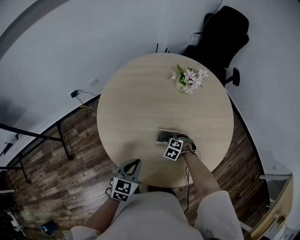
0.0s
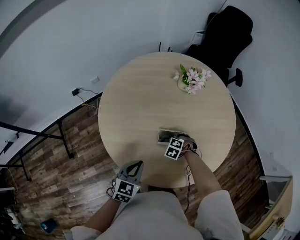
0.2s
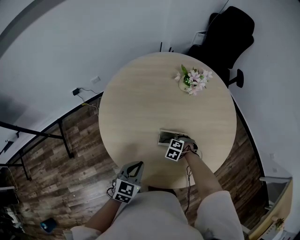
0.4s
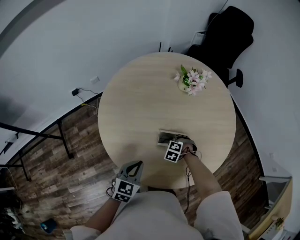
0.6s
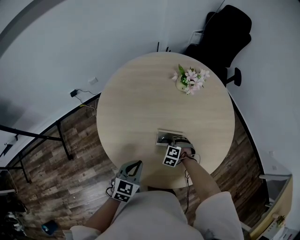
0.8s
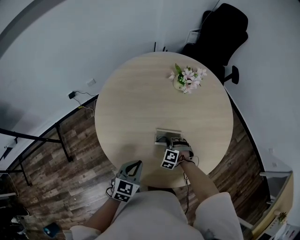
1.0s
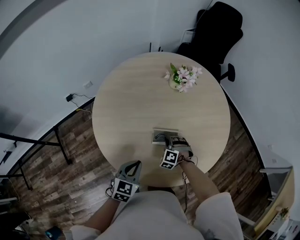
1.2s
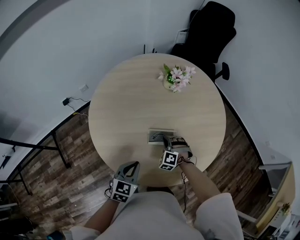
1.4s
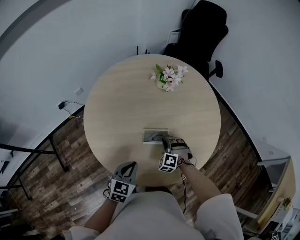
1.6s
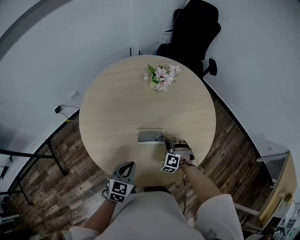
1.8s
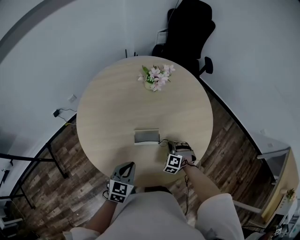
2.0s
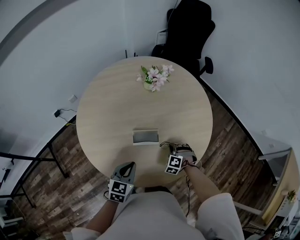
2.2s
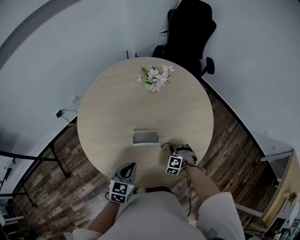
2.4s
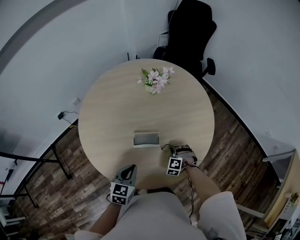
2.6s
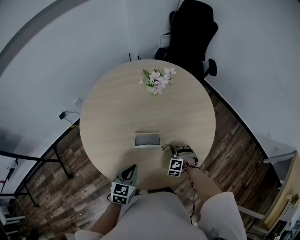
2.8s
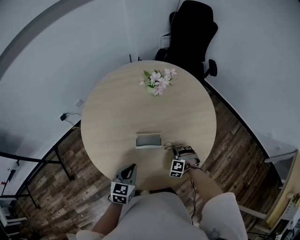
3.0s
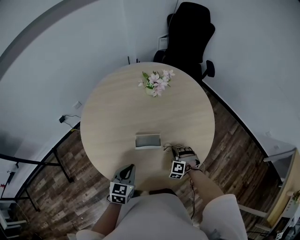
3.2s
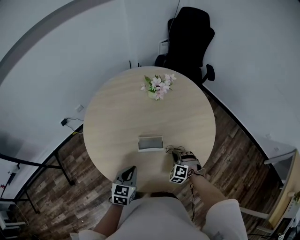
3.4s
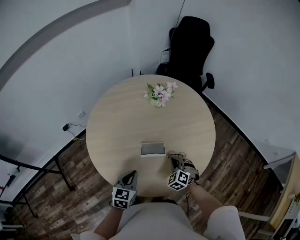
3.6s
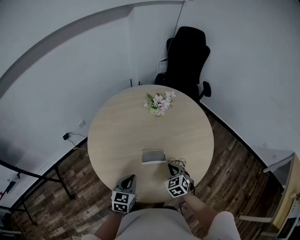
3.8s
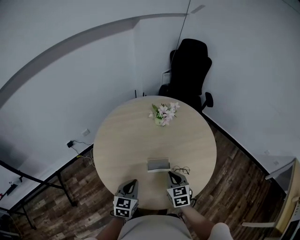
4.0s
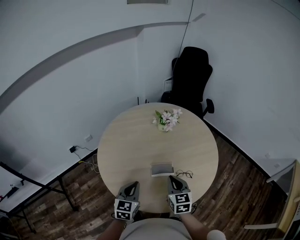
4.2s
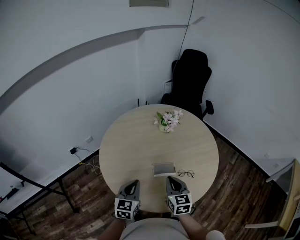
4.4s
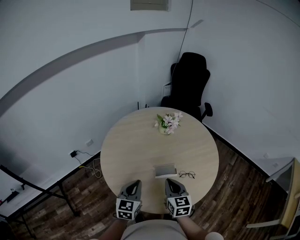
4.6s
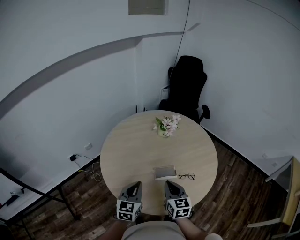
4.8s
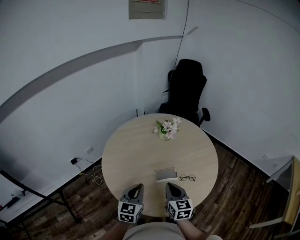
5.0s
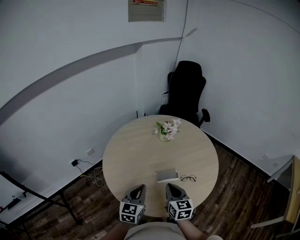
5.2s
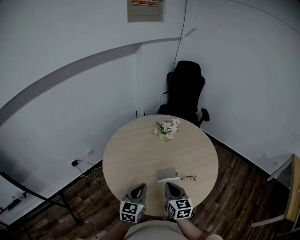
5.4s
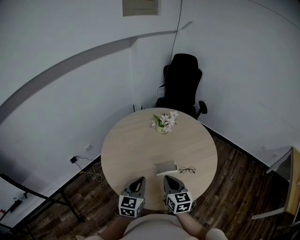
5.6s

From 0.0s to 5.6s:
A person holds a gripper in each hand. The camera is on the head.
From 0.0s to 1.4s: The right gripper changes place by some 5 cm, and changes its angle by roughly 20 degrees.
From 1.4s to 2.8s: The left gripper moves to the right, about 5 cm; the right gripper heads to the right, covering roughly 15 cm.
From 2.8s to 4.2s: The right gripper moves upward and to the left, about 30 cm, and twists approximately 80 degrees clockwise, seen from behind. Meanwhile the left gripper shifts roughly 15 cm upward and to the left.
From 4.2s to 5.6s: The left gripper heads upward, covering approximately 5 cm, while the right gripper travels to the left by approximately 5 cm.

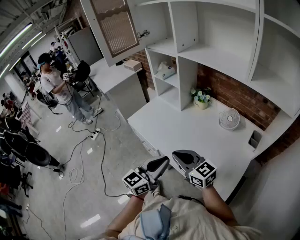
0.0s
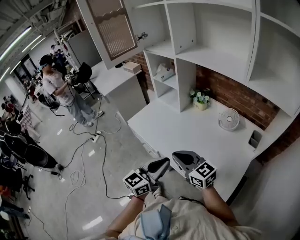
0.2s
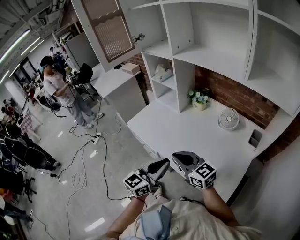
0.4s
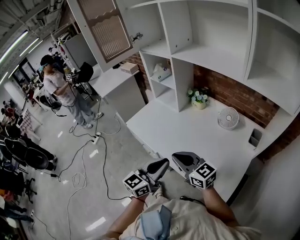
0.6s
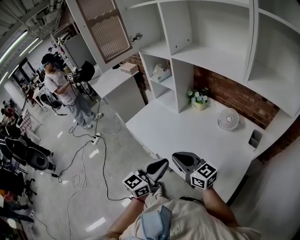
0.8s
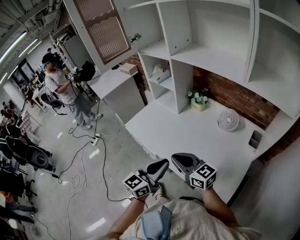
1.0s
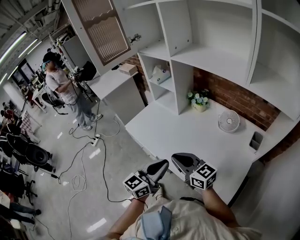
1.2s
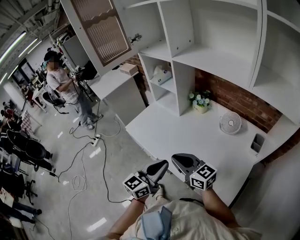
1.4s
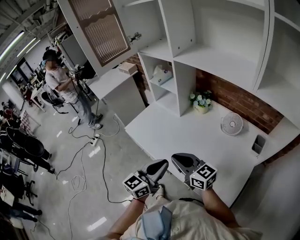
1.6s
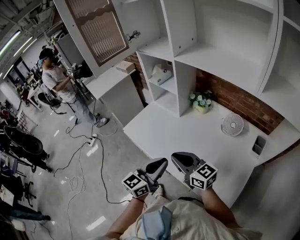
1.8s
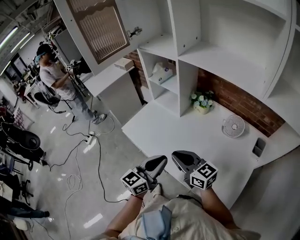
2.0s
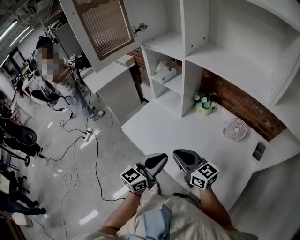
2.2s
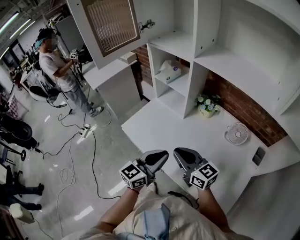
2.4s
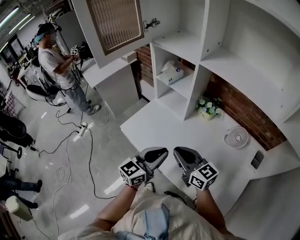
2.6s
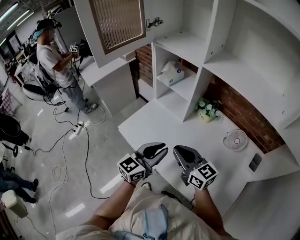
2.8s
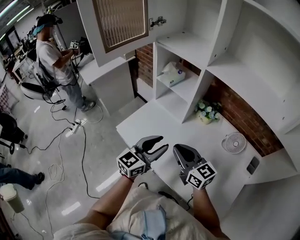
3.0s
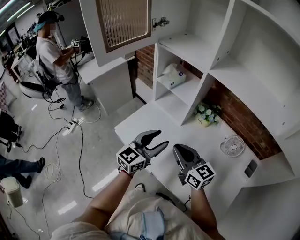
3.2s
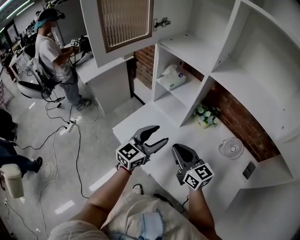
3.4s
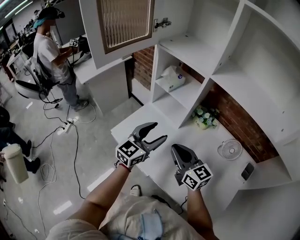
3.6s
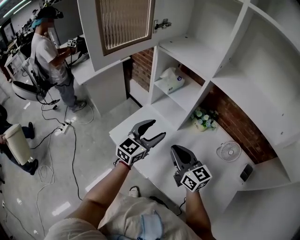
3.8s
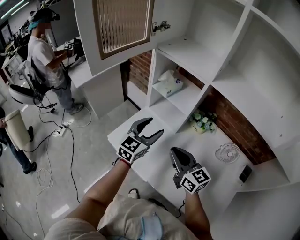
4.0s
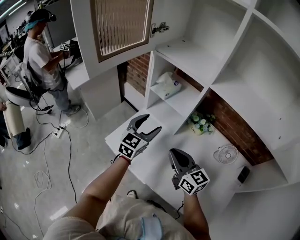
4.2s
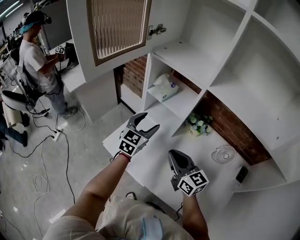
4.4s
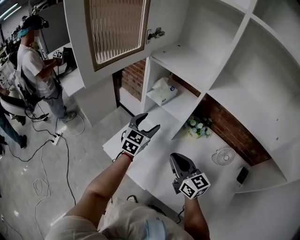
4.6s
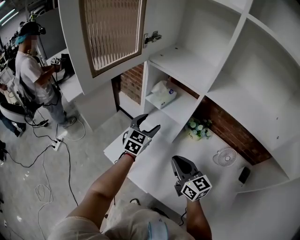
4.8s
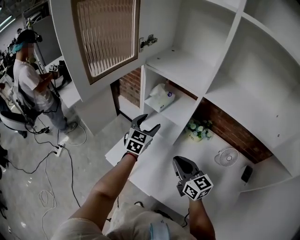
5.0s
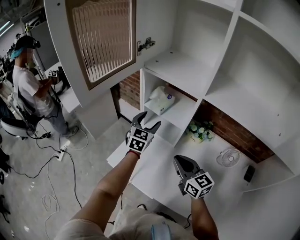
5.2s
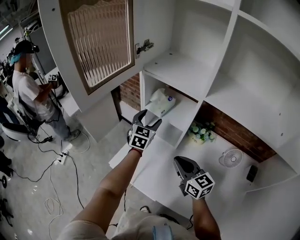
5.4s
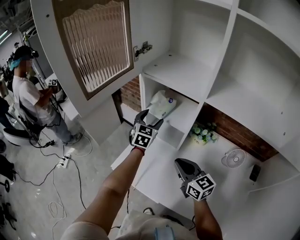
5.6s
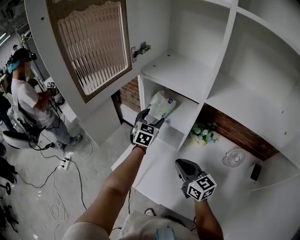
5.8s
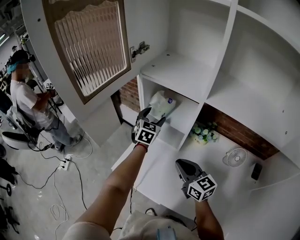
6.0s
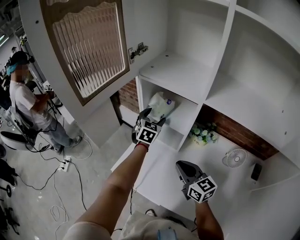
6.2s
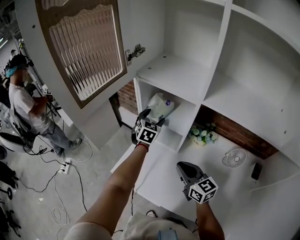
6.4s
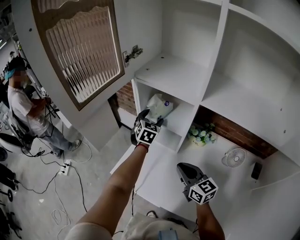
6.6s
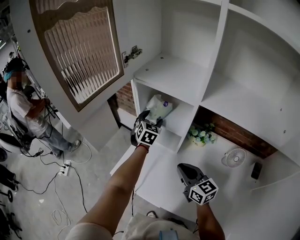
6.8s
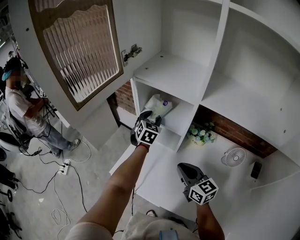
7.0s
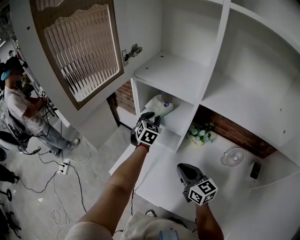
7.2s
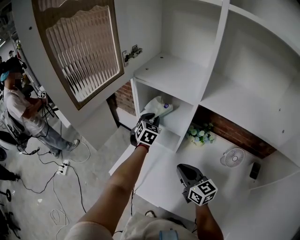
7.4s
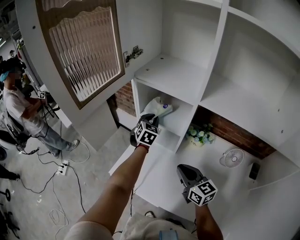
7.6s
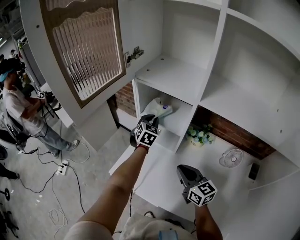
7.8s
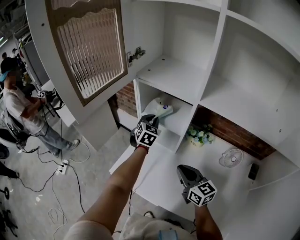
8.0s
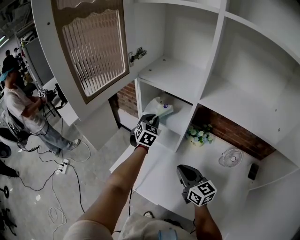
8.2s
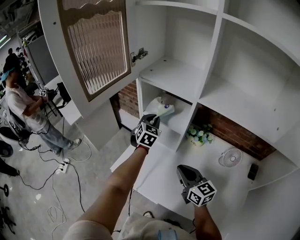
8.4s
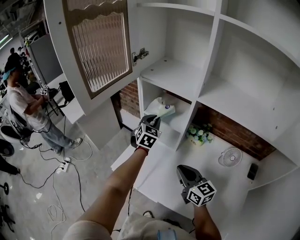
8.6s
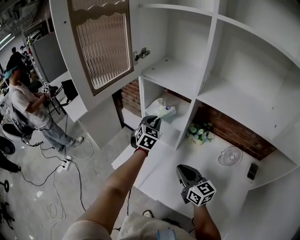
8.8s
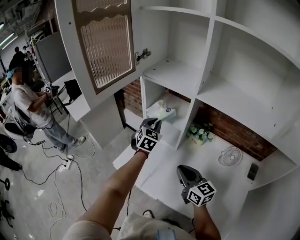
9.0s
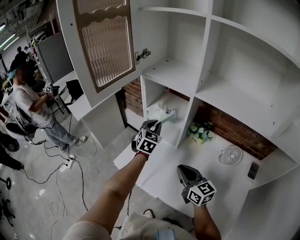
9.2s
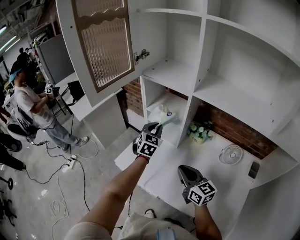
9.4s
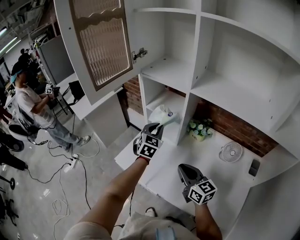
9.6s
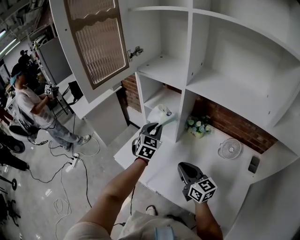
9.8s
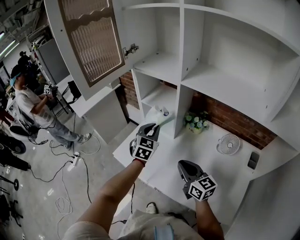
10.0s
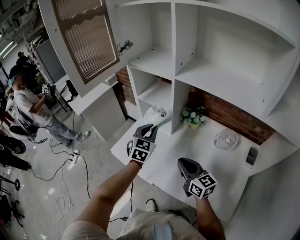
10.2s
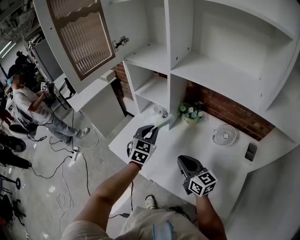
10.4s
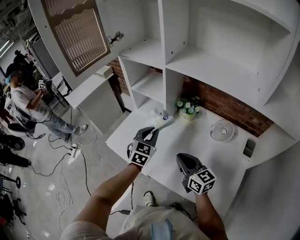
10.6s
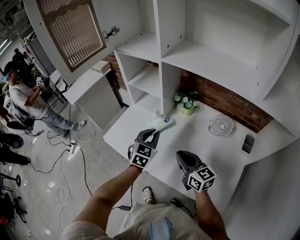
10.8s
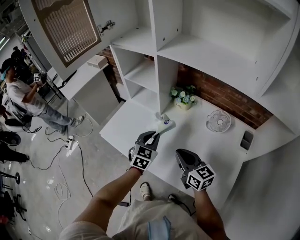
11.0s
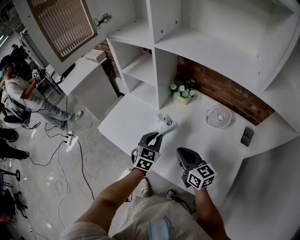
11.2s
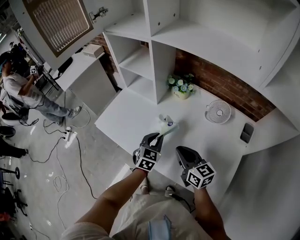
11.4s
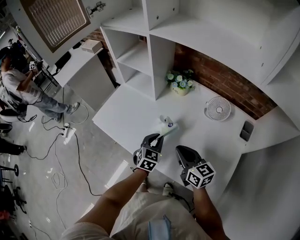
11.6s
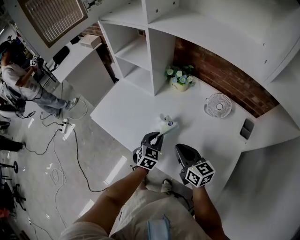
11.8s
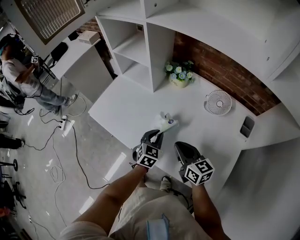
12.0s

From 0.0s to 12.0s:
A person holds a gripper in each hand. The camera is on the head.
From 0.0s to 1.6s: Both grippers travel together forward, about 5 cm.
From 1.6s to 3.0s: The right gripper heads forward, covering some 15 cm; the left gripper heads forward and to the left, covering approximately 20 cm, and opens.
From 3.0s to 4.4s: The left gripper is displaced forward by about 20 cm, turns by about 20 degrees, and opens its fingers, while the right gripper goes approximately 5 cm forward.
From 4.4s to 6.0s: The right gripper goes some 5 cm forward; the left gripper goes approximately 15 cm forward.
From 6.0s to 7.6s: The left gripper closes its fingers.
From 7.6s to 9.0s: The two grippers go approximately 10 cm backward.
From 9.0s to 10.4s: The left gripper is displaced backward by roughly 15 cm; the right gripper heads backward and to the right, covering approximately 10 cm.
From 10.4s to 12.0s: The left gripper is displaced downward, backward and to the right by some 25 cm. The right gripper is displaced downward and to the right by roughly 15 cm.

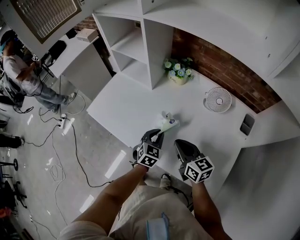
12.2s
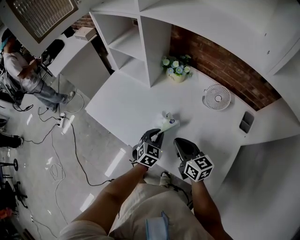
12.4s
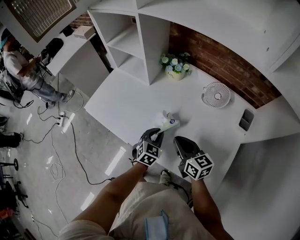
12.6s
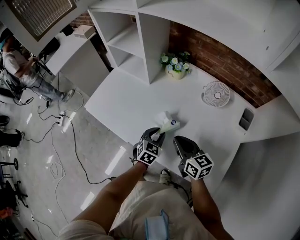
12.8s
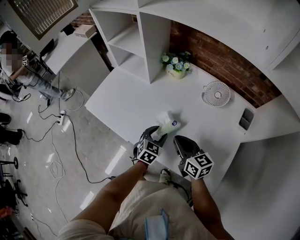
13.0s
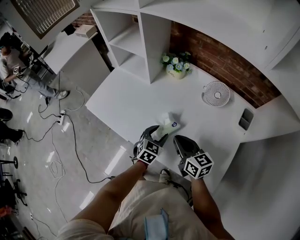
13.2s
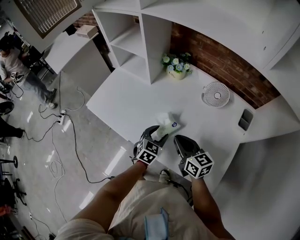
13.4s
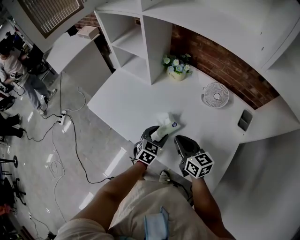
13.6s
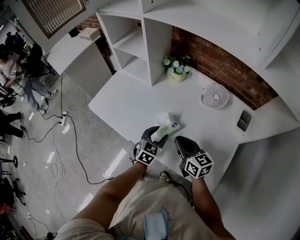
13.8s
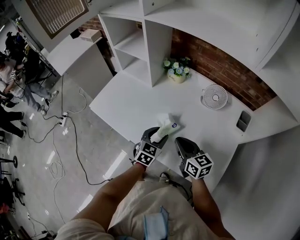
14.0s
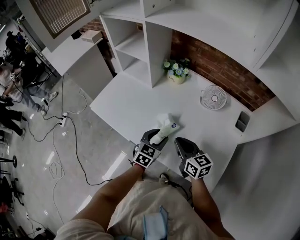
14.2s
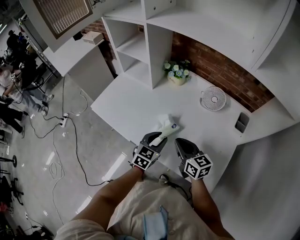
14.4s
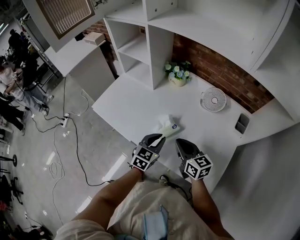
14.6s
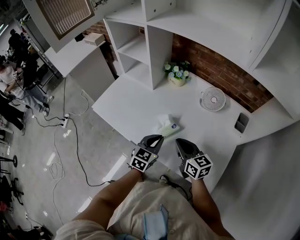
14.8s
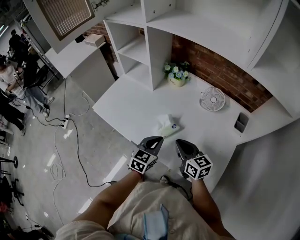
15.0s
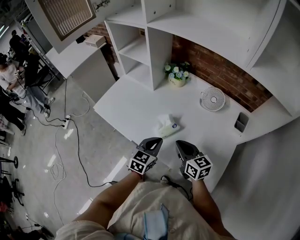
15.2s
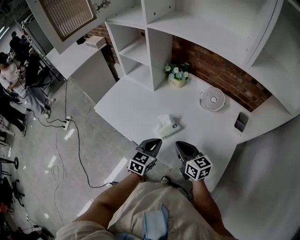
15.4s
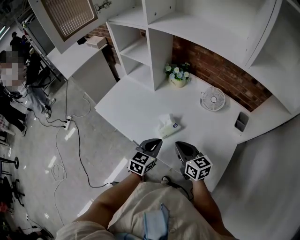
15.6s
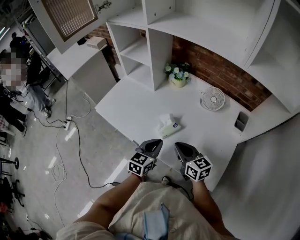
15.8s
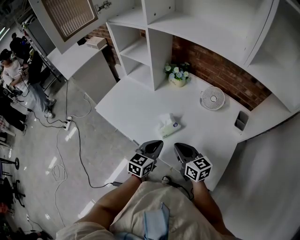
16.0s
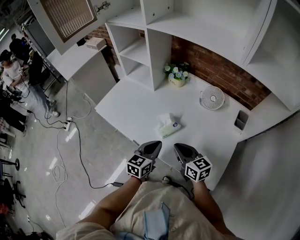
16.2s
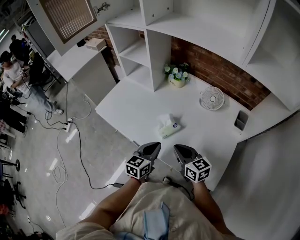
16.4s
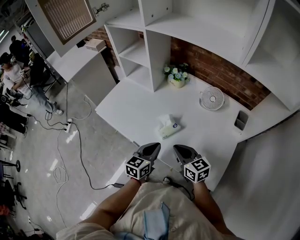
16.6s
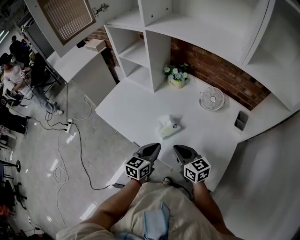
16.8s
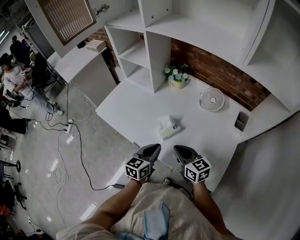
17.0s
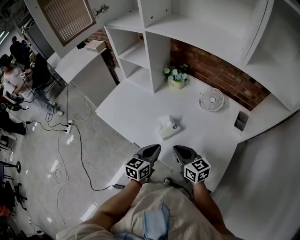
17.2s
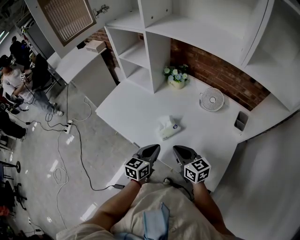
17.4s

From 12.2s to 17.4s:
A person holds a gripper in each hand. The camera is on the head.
From 12.2s to 14.0s: The left gripper ends up some 5 cm from where it was, and opens up.
From 14.0s to 15.6s: The left gripper shifts about 10 cm backward and upward, and closes.
From 15.6s to 17.4s: There are only small adjustments of the grippers.

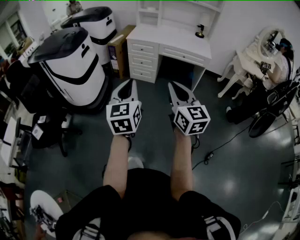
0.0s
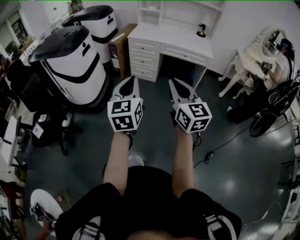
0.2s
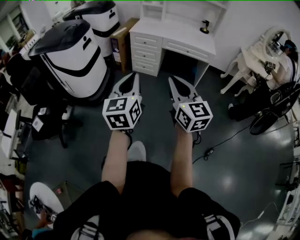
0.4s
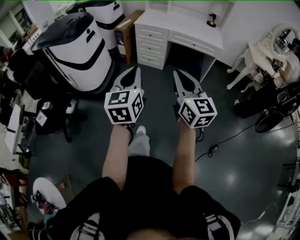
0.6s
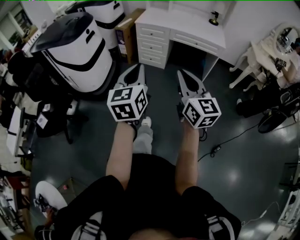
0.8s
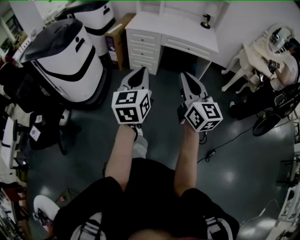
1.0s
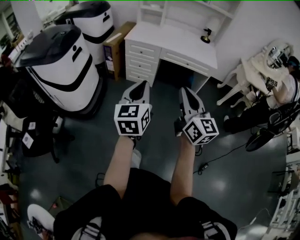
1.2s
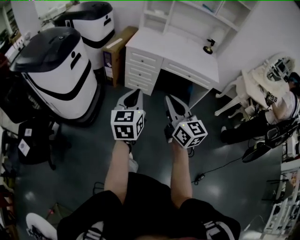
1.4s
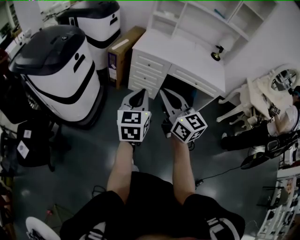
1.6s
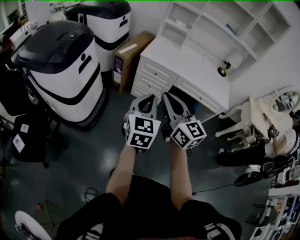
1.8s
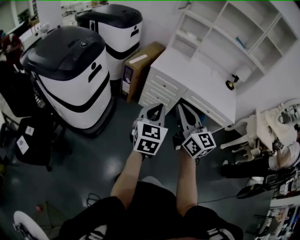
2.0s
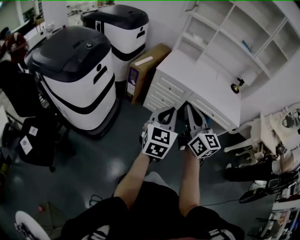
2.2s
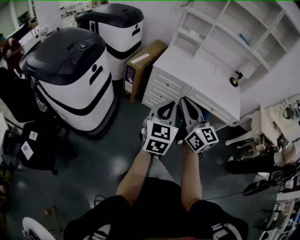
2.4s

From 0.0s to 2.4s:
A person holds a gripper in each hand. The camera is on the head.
From 0.0s to 1.2s: The two grippers go roughly 15 cm forward.
From 1.2s to 2.4s: The left gripper travels forward by approximately 25 cm. The right gripper is displaced forward and to the left by about 35 cm.
